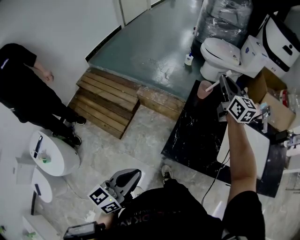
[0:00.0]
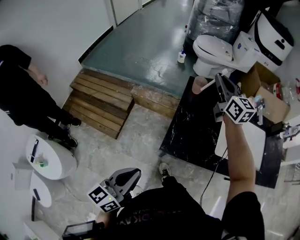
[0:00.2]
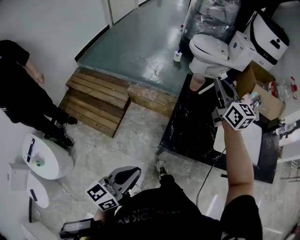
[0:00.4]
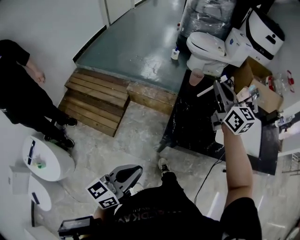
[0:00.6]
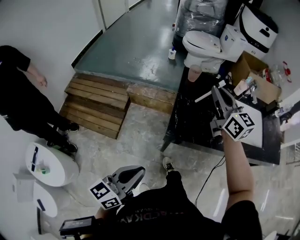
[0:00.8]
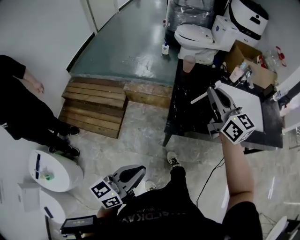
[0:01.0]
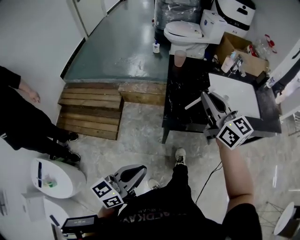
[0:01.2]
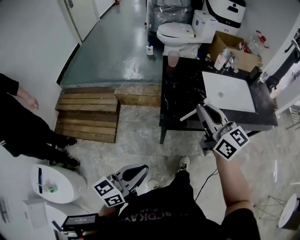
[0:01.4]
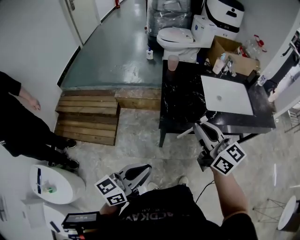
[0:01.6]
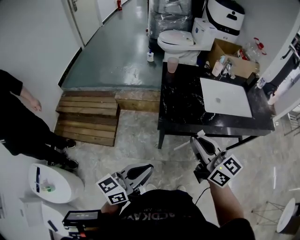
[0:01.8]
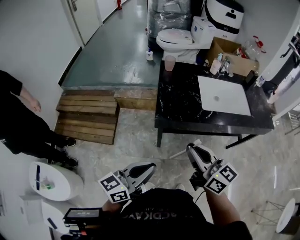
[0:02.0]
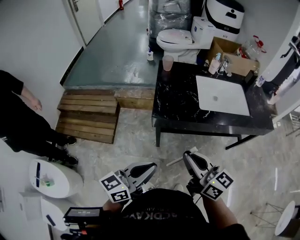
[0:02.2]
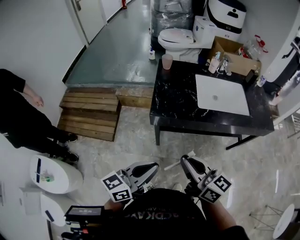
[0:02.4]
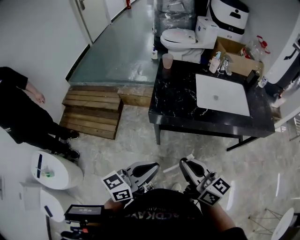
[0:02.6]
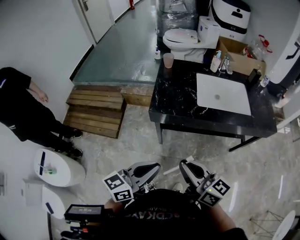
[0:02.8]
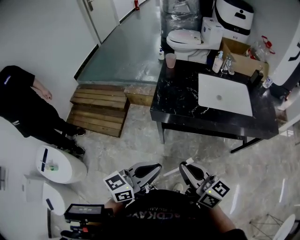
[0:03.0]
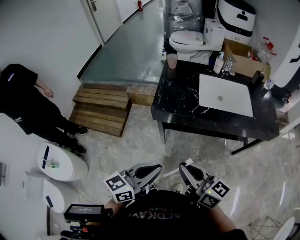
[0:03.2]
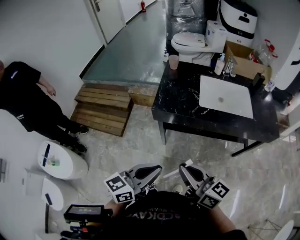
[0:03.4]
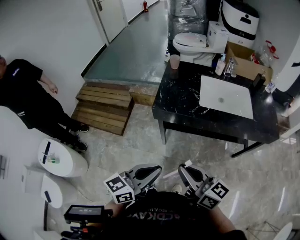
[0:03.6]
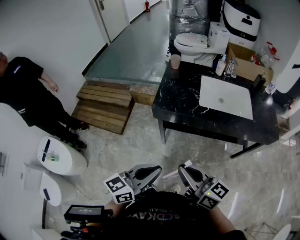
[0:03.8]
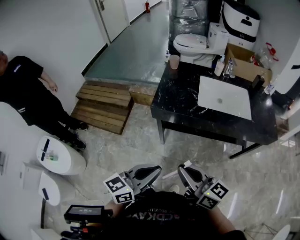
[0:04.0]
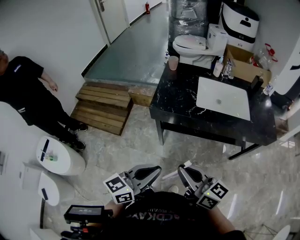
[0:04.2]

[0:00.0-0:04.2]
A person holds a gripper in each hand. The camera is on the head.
0:00.0 to 0:01.4: The right gripper heads backward, covering approximately 40 cm. The left gripper is displaced backward by approximately 15 cm, and changes its angle by some 30 degrees.
0:01.4 to 0:02.8: The left gripper shifts about 15 cm to the right. The right gripper shifts approximately 20 cm backward, and swivels roughly 20 degrees.
0:02.8 to 0:04.2: The left gripper is displaced backward by approximately 5 cm. The right gripper changes place by some 5 cm.

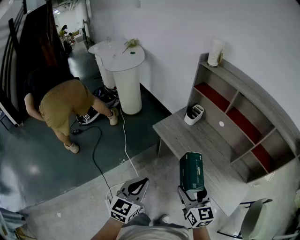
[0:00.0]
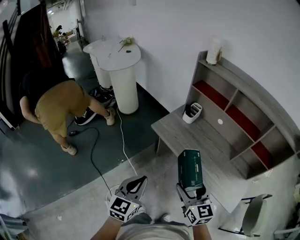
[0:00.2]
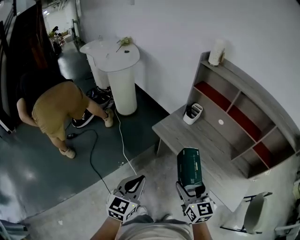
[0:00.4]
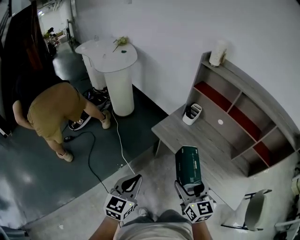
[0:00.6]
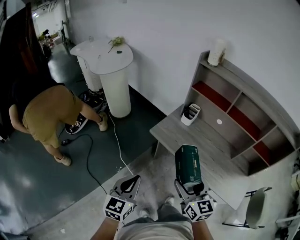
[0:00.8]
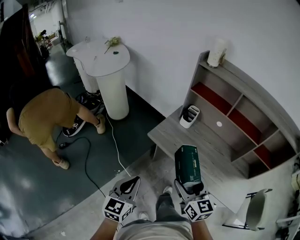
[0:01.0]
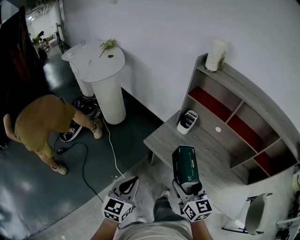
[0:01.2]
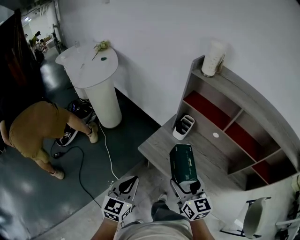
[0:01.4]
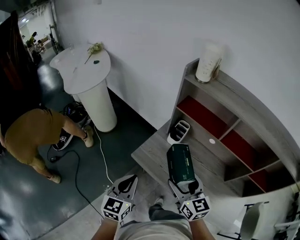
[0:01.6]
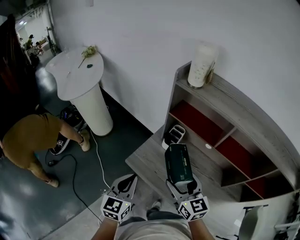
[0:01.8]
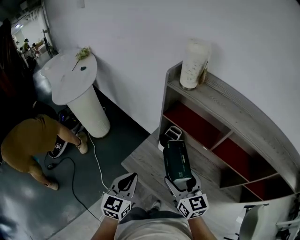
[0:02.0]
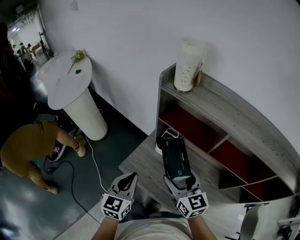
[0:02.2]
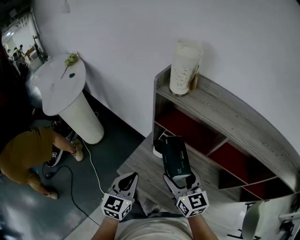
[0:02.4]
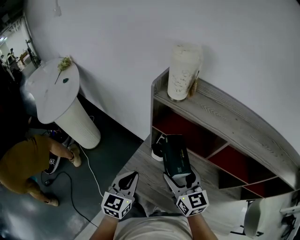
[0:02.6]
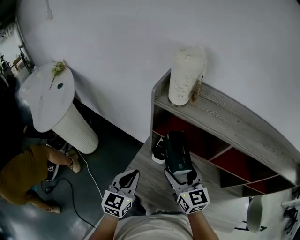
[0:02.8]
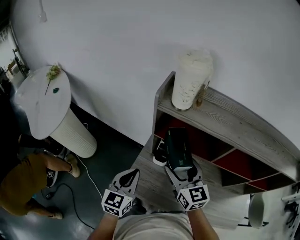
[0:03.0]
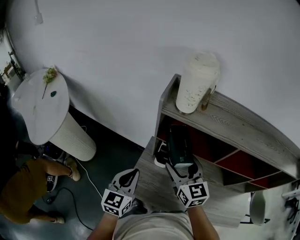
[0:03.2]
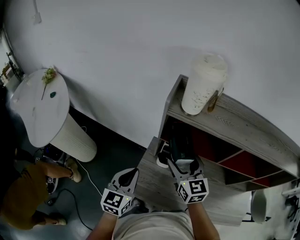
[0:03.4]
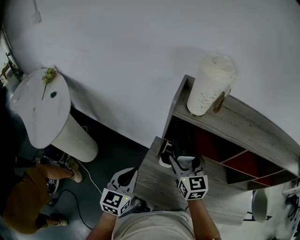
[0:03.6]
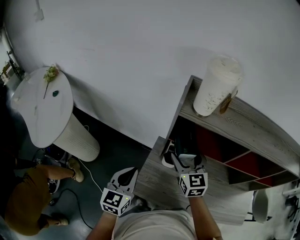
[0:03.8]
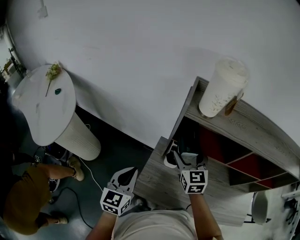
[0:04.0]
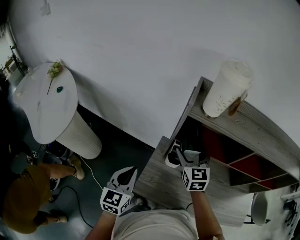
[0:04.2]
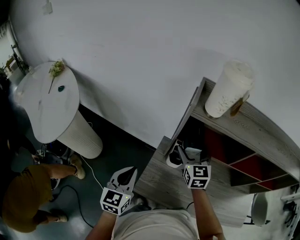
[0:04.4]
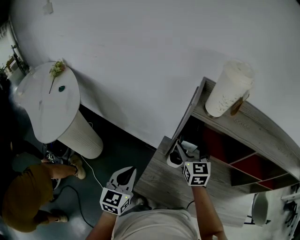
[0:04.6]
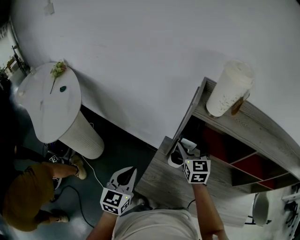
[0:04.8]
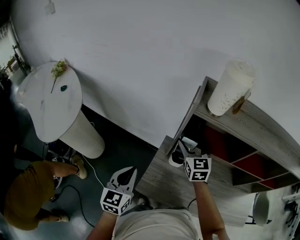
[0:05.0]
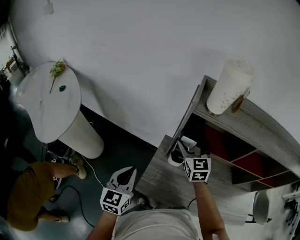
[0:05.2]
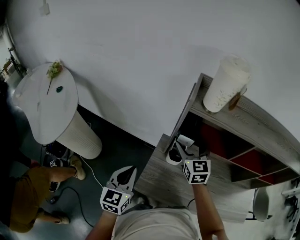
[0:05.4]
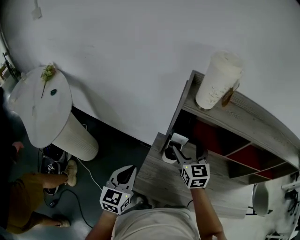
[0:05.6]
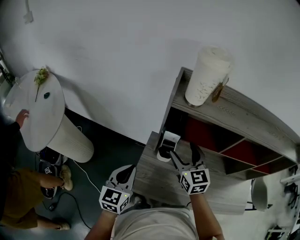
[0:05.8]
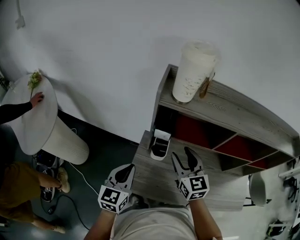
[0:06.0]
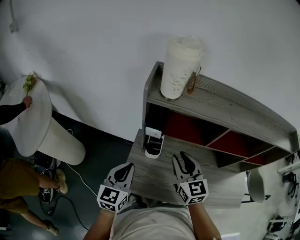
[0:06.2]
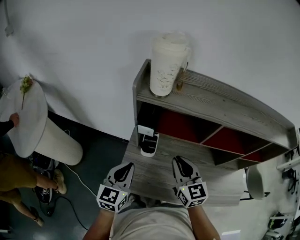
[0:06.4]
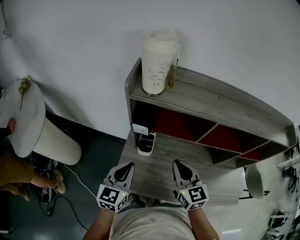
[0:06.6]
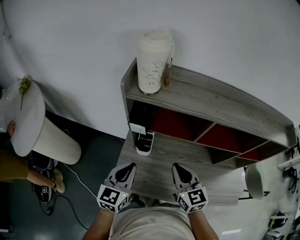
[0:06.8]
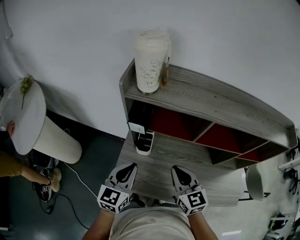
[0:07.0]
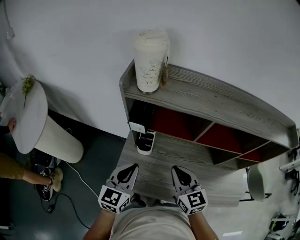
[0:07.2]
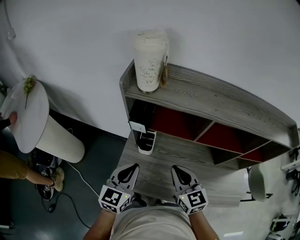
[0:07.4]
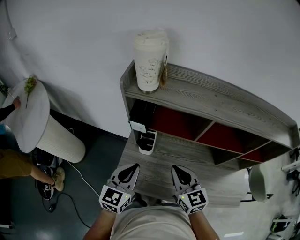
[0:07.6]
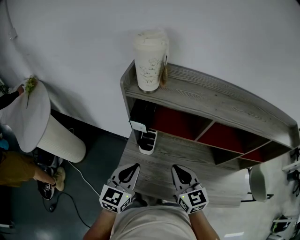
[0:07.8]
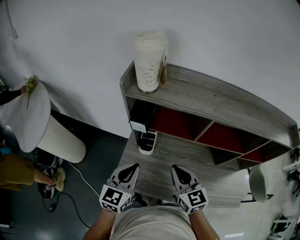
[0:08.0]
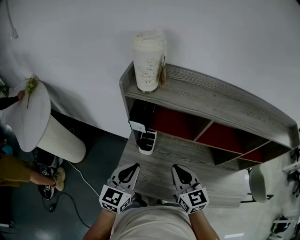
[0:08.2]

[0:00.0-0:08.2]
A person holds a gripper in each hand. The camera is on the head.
0:00.0 to 0:01.6: Both grippers travel together forward, about 30 cm.
0:01.6 to 0:03.2: Both grippers travel together forward, some 25 cm.
0:03.2 to 0:05.0: The left gripper travels to the left by about 10 cm; the right gripper goes about 10 cm forward and to the left.
0:05.0 to 0:06.6: The left gripper moves to the right, about 15 cm, while the right gripper shifts some 20 cm backward and to the right, and closes its fingers.
0:06.6 to 0:08.2: The left gripper changes place by about 5 cm.

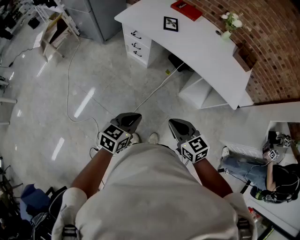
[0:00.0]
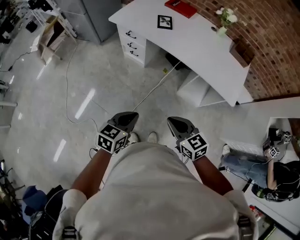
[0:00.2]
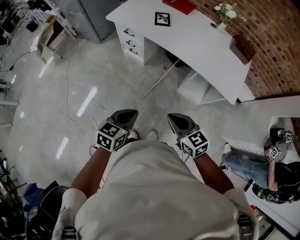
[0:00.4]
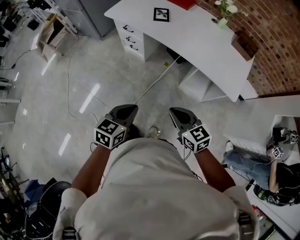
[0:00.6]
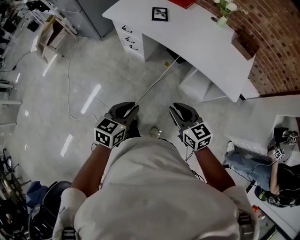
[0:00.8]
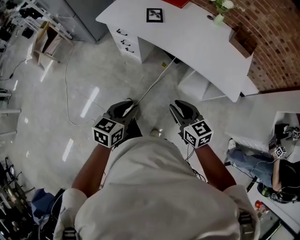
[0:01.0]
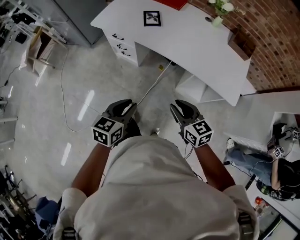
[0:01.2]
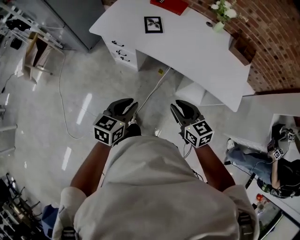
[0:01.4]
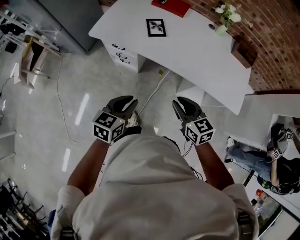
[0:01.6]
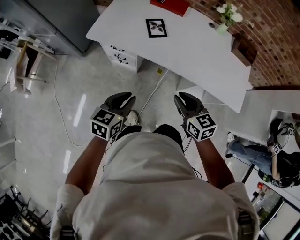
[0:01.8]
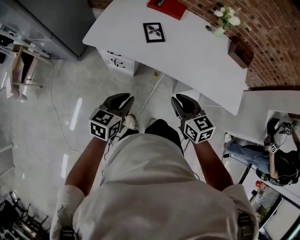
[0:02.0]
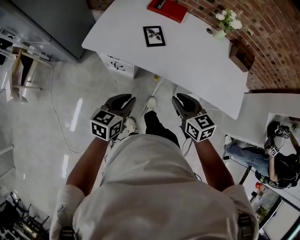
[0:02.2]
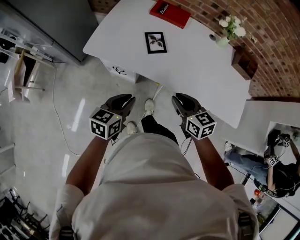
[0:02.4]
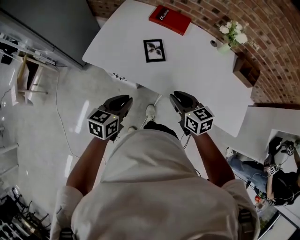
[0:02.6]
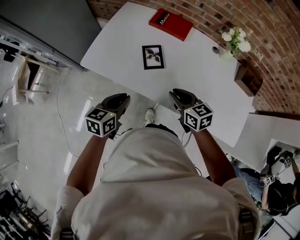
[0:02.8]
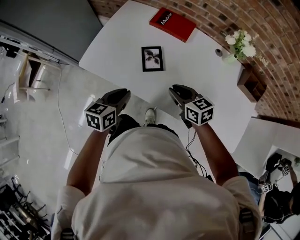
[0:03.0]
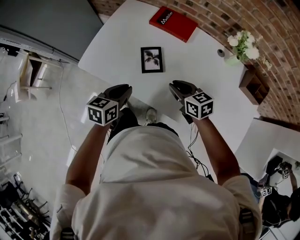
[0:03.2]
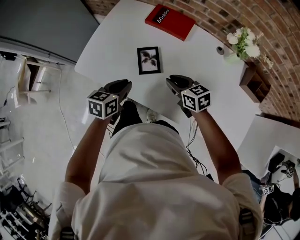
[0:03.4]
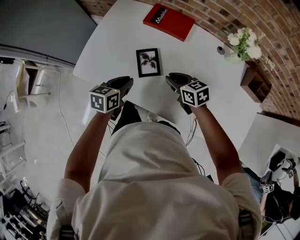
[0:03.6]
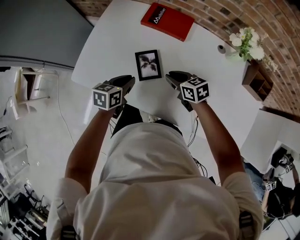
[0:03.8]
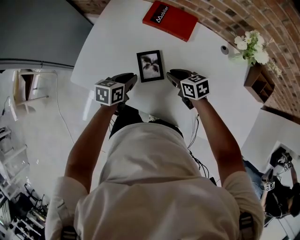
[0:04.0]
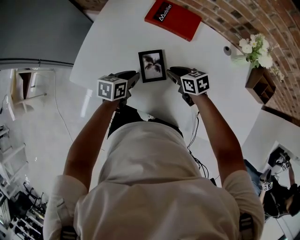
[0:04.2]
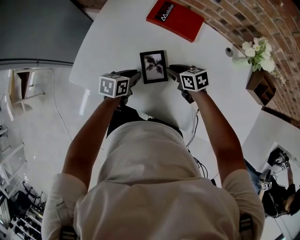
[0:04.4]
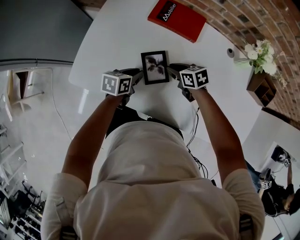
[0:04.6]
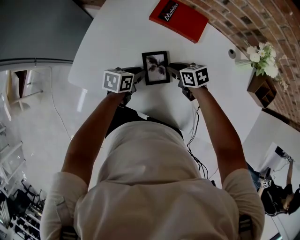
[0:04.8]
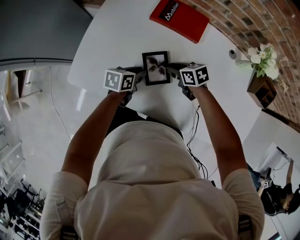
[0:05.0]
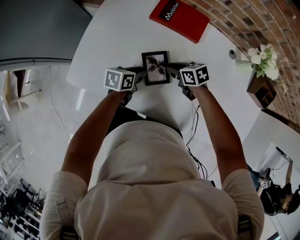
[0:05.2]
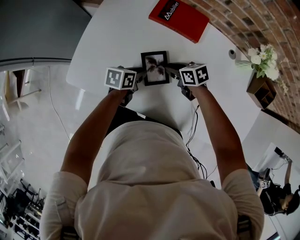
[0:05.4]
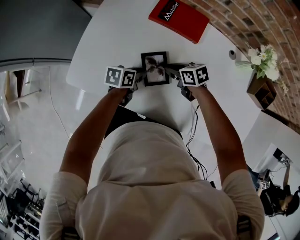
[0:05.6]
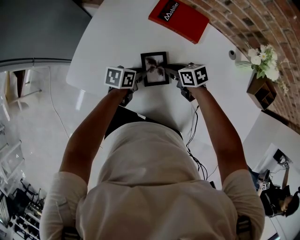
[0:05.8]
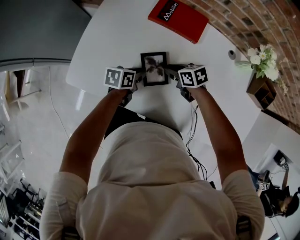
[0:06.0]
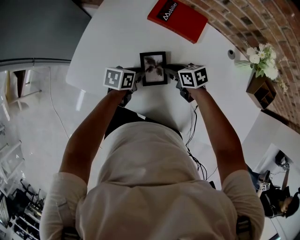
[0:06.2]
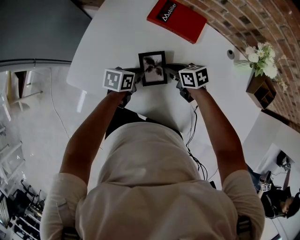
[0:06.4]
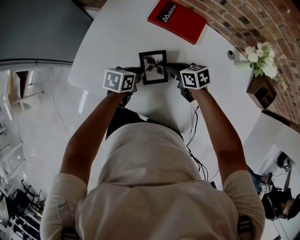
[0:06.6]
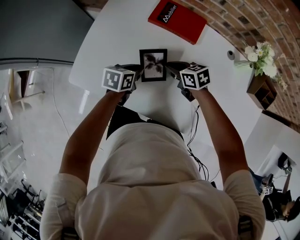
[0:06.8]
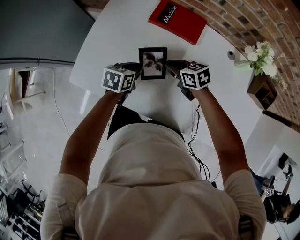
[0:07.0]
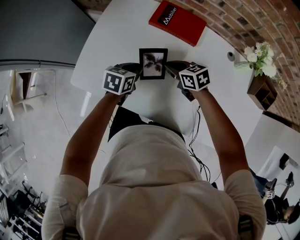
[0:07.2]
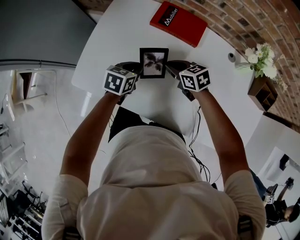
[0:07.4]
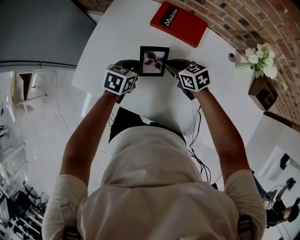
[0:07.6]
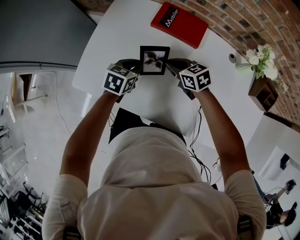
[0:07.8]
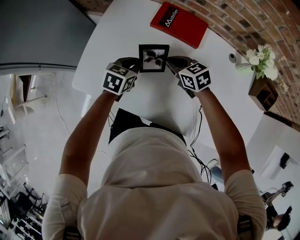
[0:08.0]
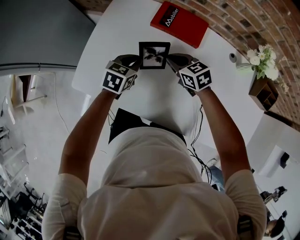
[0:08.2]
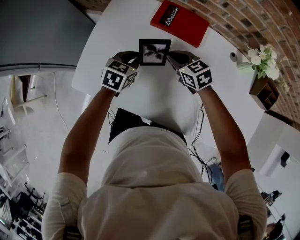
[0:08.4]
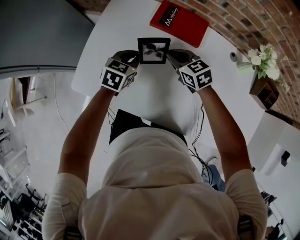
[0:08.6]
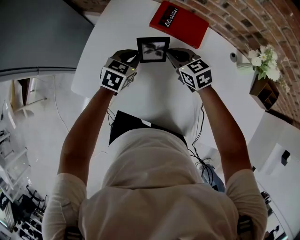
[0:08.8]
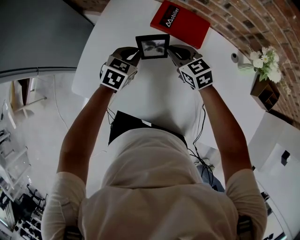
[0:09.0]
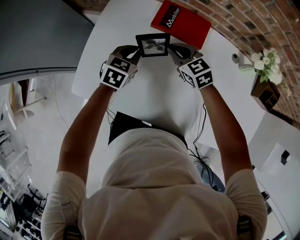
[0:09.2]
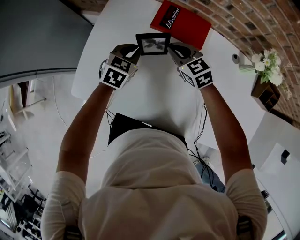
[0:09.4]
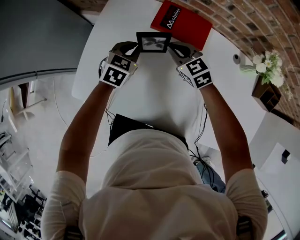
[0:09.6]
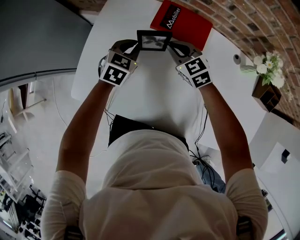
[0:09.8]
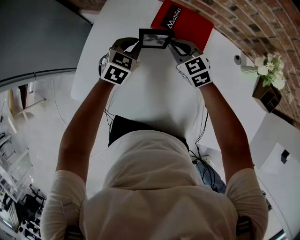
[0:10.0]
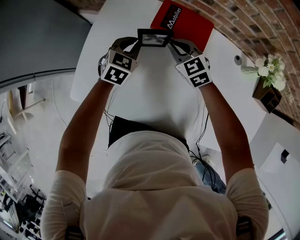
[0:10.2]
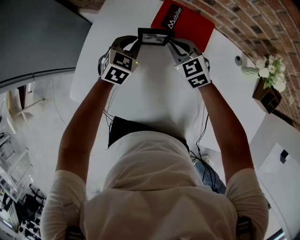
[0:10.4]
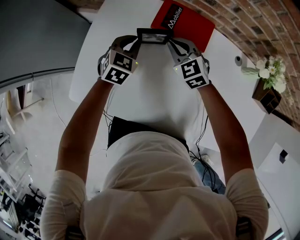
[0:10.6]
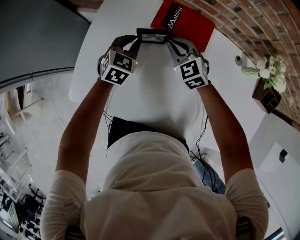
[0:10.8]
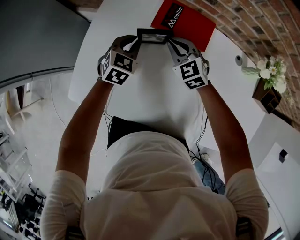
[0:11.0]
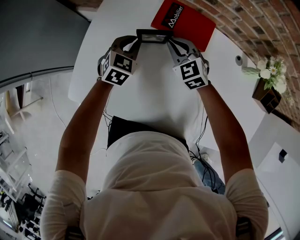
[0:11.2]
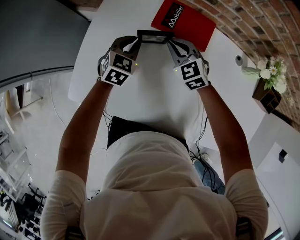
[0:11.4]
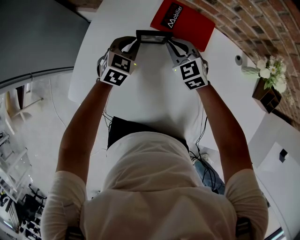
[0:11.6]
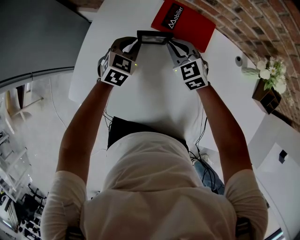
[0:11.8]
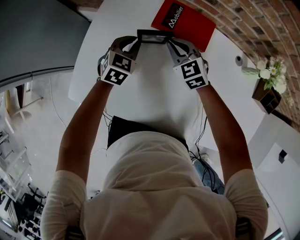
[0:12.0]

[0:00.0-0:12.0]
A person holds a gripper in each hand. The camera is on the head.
0:00.0 to 0:01.6: Both grippers travel together forward, about 25 cm.
0:01.6 to 0:03.0: Both grippers move forward, about 30 cm.
0:03.0 to 0:04.4: The grippers both shift forward and downward by approximately 25 cm.
0:04.4 to 0:06.0: The grippers stay close to where they were, moving slightly.
0:06.0 to 0:07.6: Both grippers travel together upward, about 5 cm. The left gripper turns by approximately 30 degrees.
0:07.6 to 0:09.0: Both grippers move forward, about 5 cm.
0:09.0 to 0:10.4: Both grippers move forward, approximately 5 cm.
0:10.4 to 0:12.0: The grippers stay close to where they were, moving slightly.
